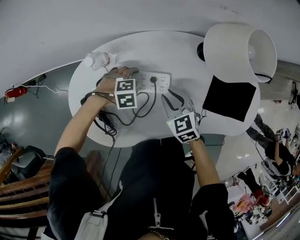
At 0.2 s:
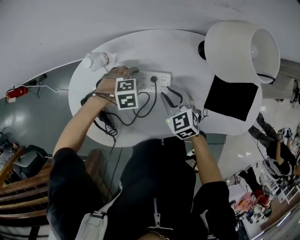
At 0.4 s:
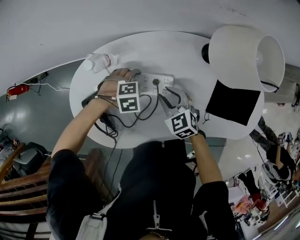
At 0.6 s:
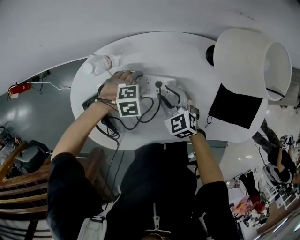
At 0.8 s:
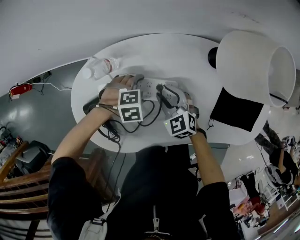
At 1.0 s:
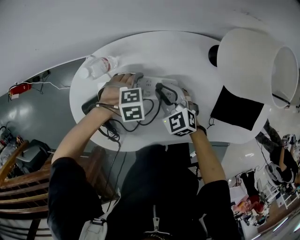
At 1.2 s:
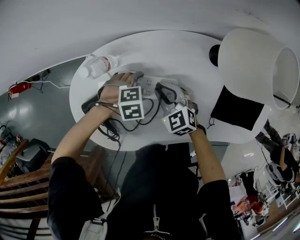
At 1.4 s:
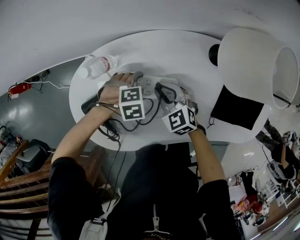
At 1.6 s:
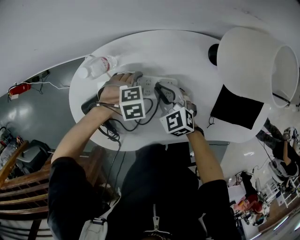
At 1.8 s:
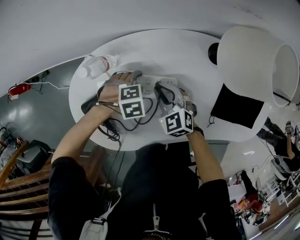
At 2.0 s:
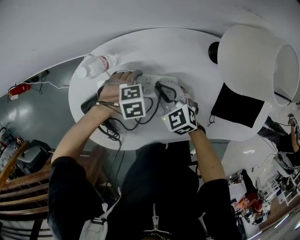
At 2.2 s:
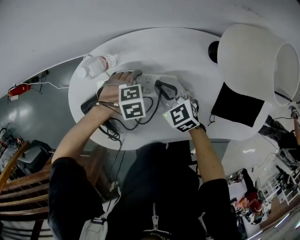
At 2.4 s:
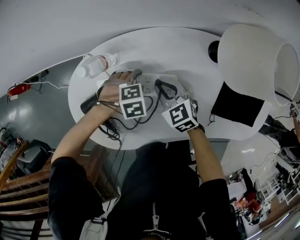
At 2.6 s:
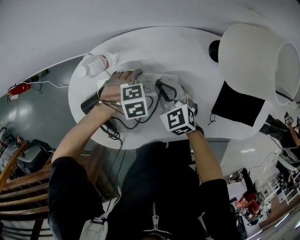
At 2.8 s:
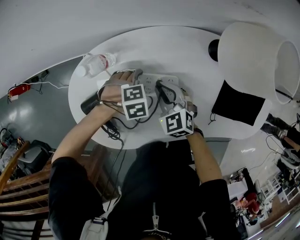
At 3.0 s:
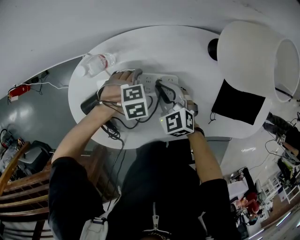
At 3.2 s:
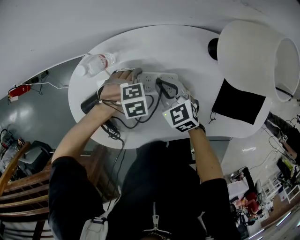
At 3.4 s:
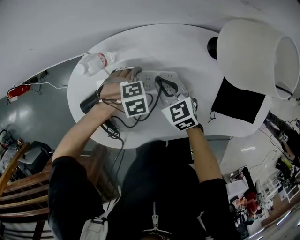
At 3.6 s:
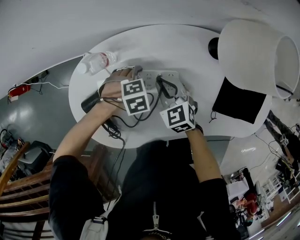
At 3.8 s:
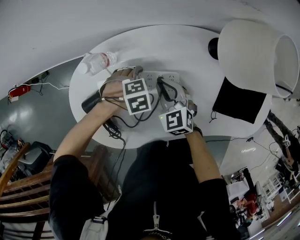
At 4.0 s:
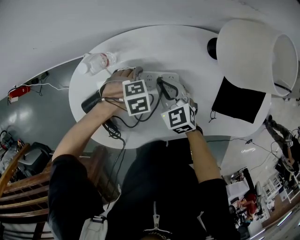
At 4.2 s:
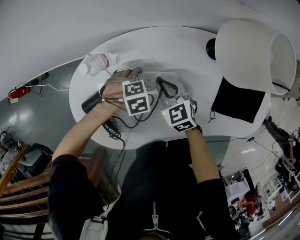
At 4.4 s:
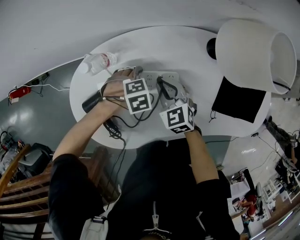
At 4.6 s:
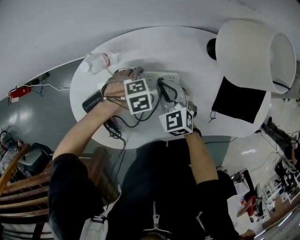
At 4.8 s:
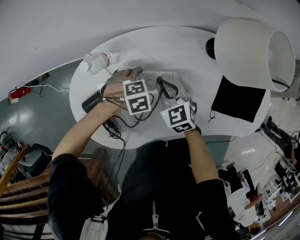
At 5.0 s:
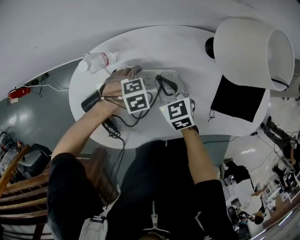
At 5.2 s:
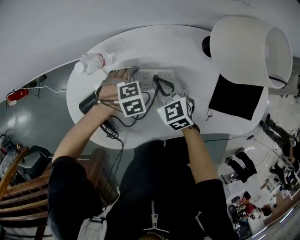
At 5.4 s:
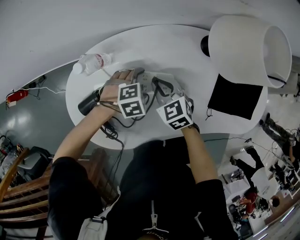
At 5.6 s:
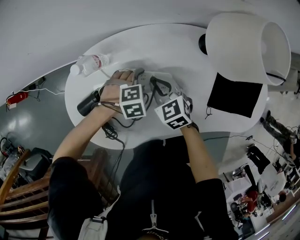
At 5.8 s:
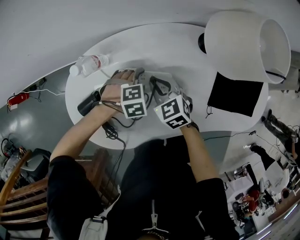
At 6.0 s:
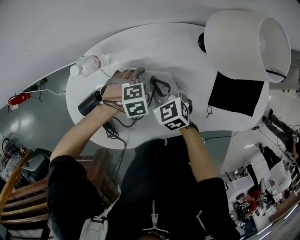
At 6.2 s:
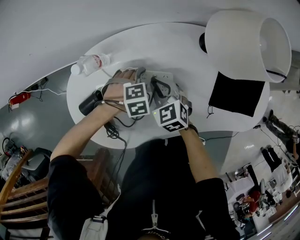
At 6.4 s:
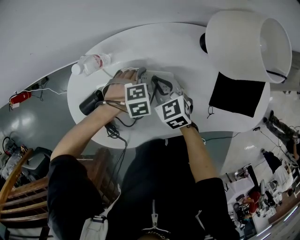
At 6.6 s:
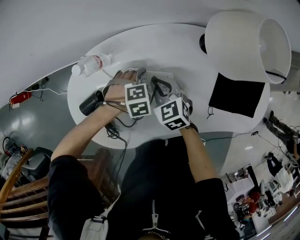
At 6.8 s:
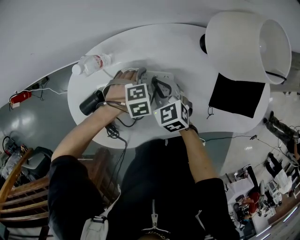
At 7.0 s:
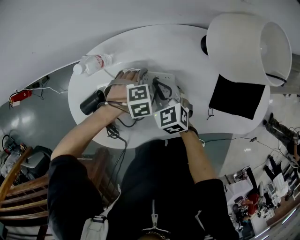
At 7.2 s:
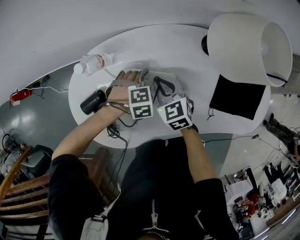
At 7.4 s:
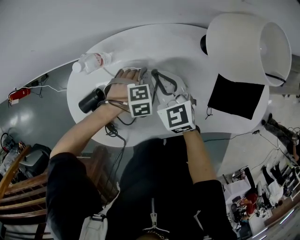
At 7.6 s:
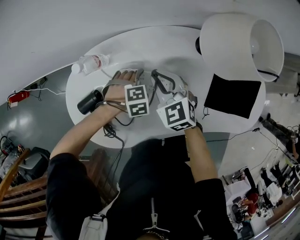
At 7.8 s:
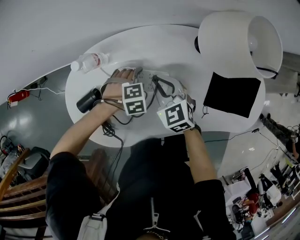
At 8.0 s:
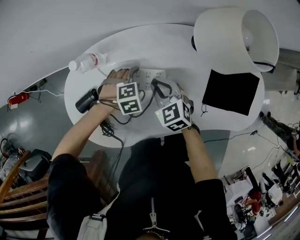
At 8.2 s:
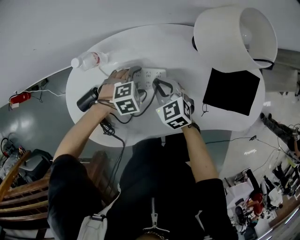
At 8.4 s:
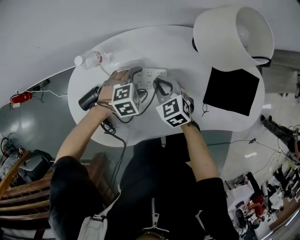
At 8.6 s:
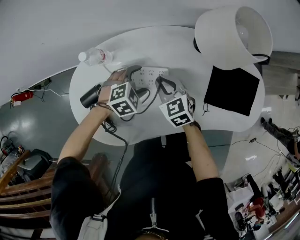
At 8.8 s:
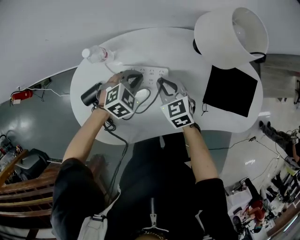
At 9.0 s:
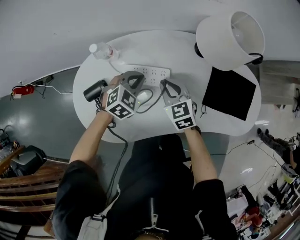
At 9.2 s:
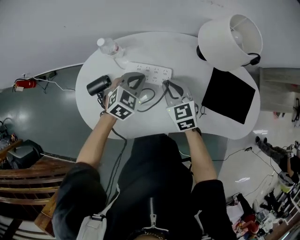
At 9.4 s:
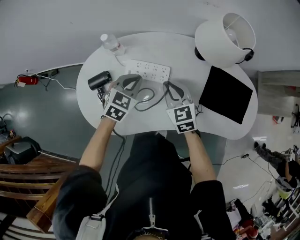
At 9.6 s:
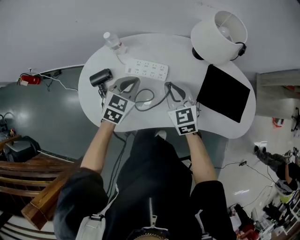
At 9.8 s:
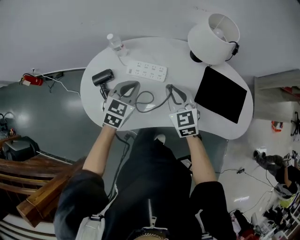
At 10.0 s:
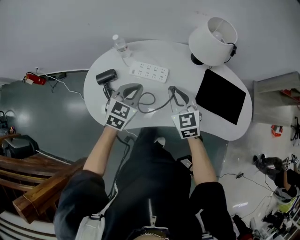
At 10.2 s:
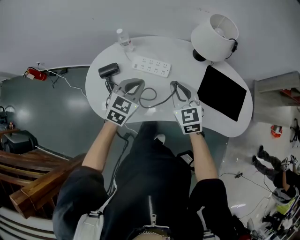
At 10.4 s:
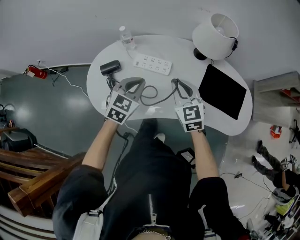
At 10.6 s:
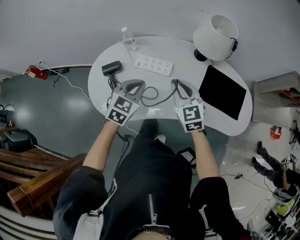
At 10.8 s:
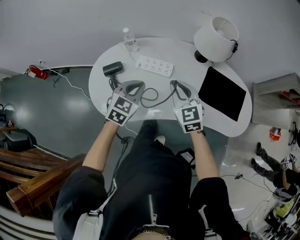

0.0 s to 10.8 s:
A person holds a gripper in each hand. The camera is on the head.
0.0 to 1.6 s: The right gripper ends up roughly 10 cm from where it was.
1.6 to 6.2 s: The grippers stay close to where they were, moving slightly.
7.8 to 9.2 s: The left gripper shifts about 15 cm upward, angles its fingers upward, by about 30 degrees, and closes its fingers. Meanwhile the right gripper changes place by some 5 cm.
9.2 to 10.8 s: The right gripper is displaced upward and backward by about 20 cm. The left gripper is displaced backward and upward by approximately 20 cm.

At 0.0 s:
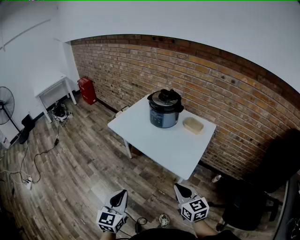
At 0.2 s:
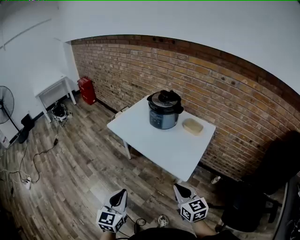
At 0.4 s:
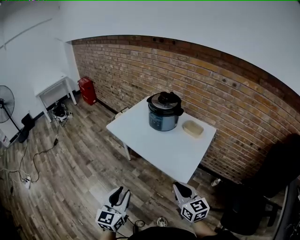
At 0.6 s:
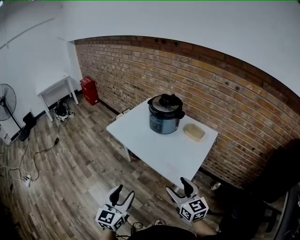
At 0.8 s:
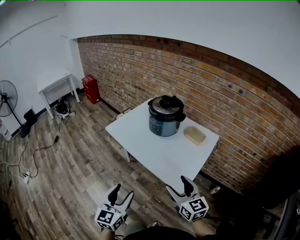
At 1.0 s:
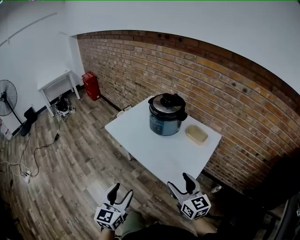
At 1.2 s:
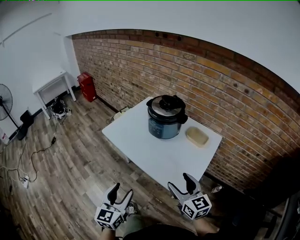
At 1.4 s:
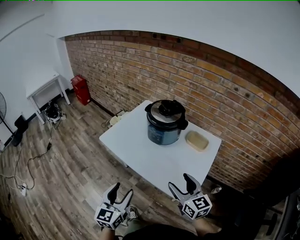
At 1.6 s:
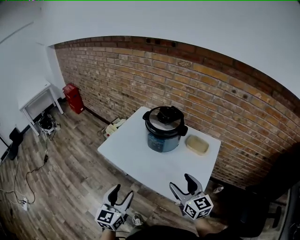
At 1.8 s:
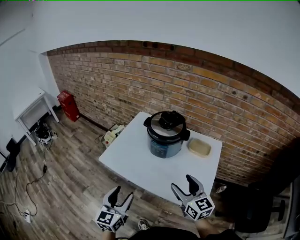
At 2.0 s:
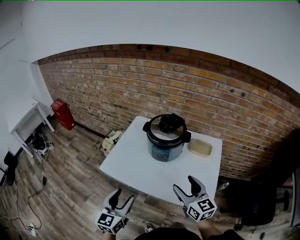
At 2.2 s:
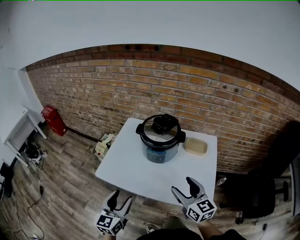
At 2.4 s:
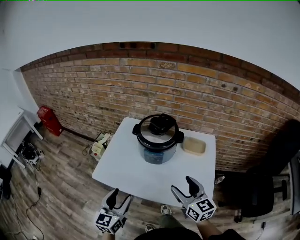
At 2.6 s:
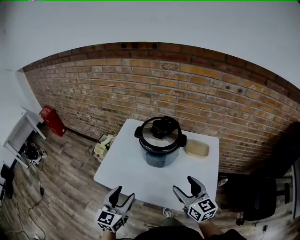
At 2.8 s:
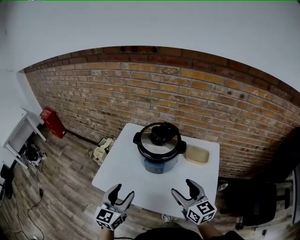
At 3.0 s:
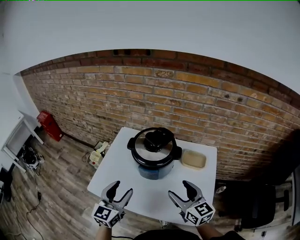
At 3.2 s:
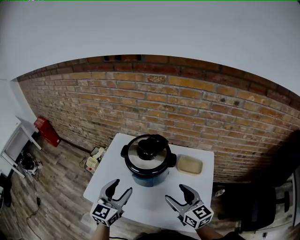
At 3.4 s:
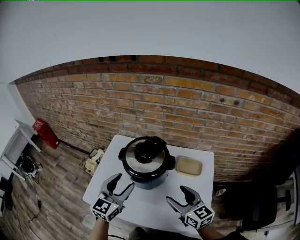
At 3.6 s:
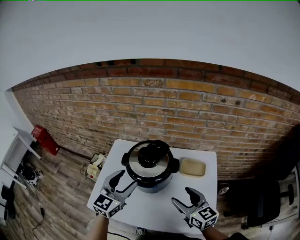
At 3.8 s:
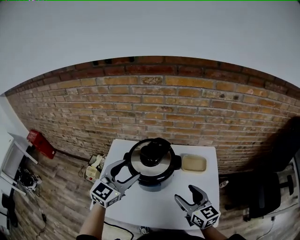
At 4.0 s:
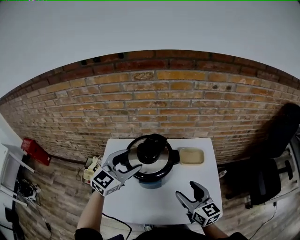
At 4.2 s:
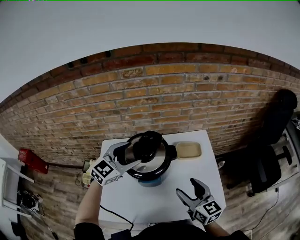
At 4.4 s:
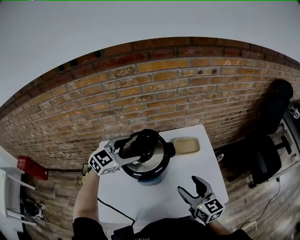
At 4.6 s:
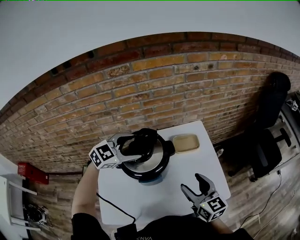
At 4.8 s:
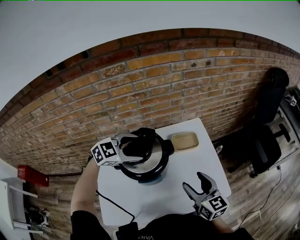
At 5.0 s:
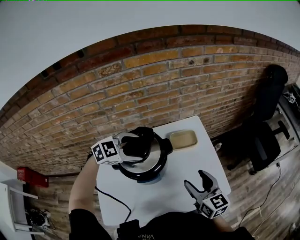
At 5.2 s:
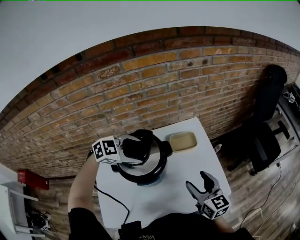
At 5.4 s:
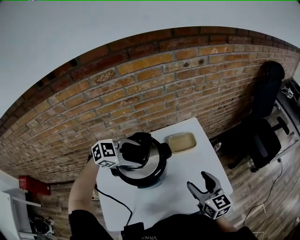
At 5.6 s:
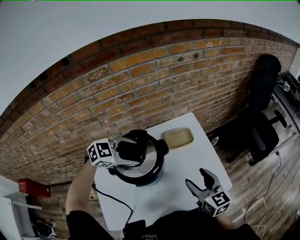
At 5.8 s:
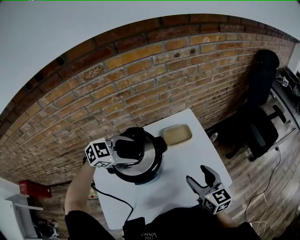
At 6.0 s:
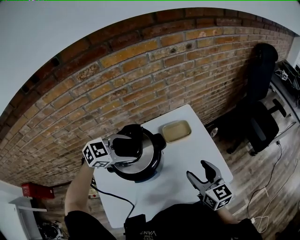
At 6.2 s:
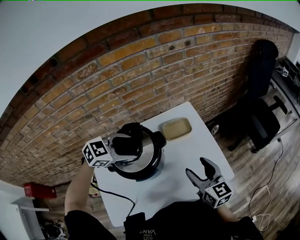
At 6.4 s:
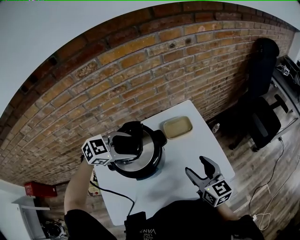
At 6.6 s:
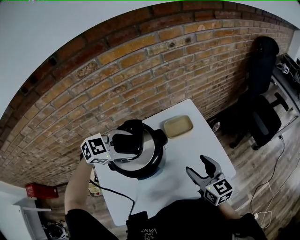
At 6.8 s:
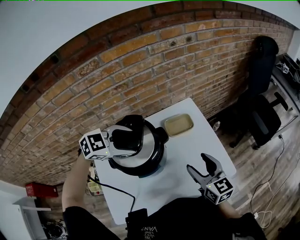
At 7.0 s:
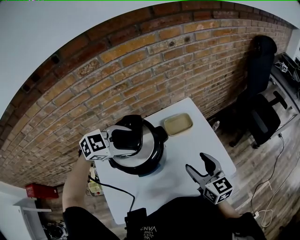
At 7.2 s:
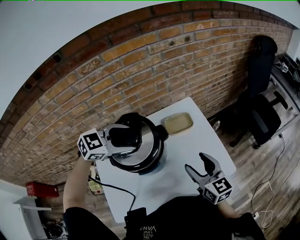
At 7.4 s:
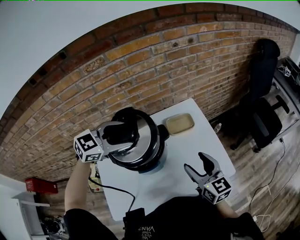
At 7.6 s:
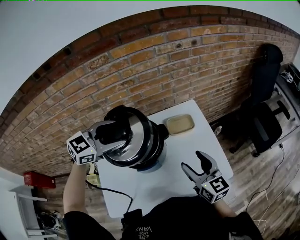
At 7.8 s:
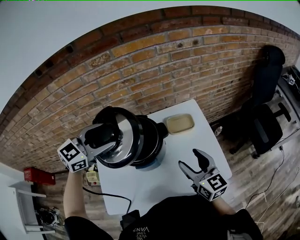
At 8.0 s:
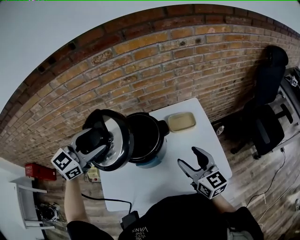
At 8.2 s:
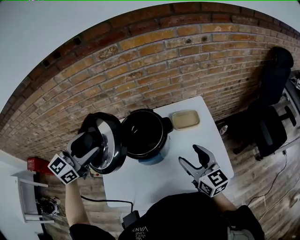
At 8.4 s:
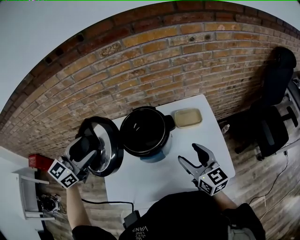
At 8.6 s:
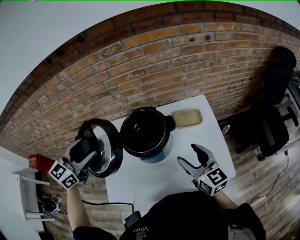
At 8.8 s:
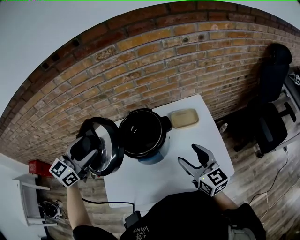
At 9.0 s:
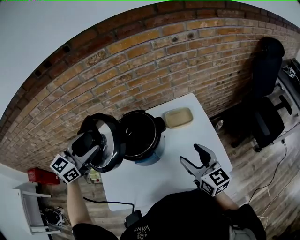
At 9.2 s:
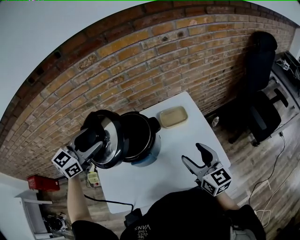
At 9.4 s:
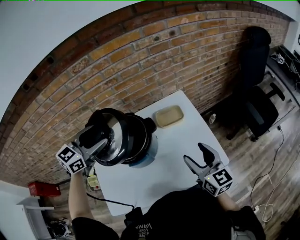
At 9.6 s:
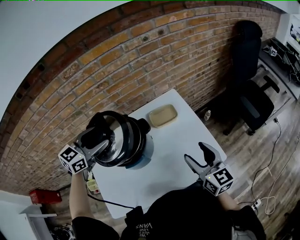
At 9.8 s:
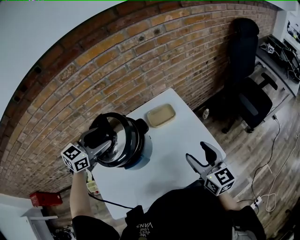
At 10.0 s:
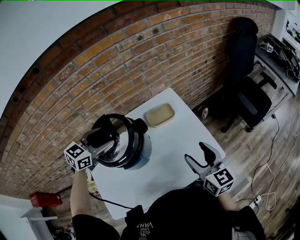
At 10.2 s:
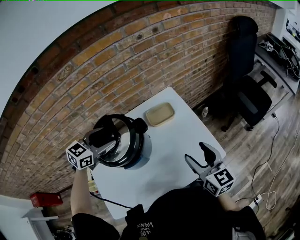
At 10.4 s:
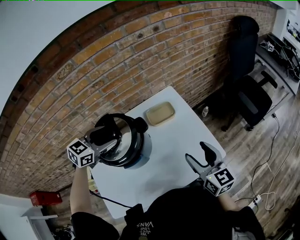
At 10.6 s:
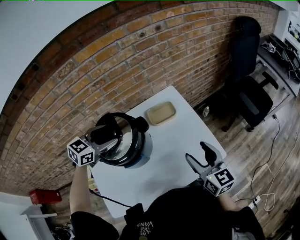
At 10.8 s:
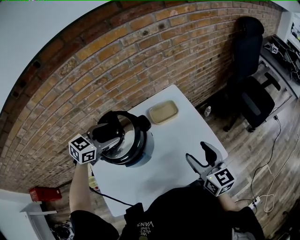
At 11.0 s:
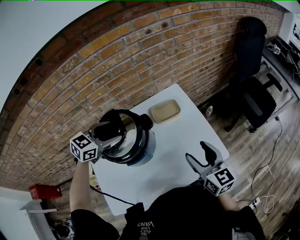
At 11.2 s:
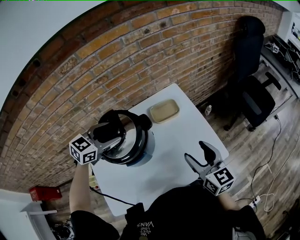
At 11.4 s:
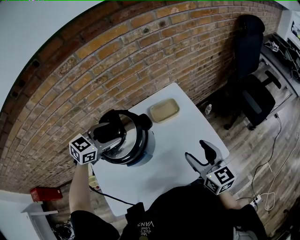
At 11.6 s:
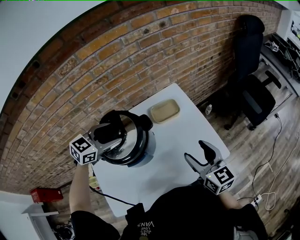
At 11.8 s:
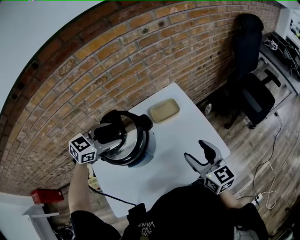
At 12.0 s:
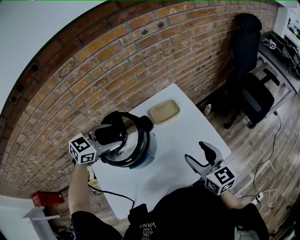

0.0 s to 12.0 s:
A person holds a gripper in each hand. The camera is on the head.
0.0 to 1.6 s: Both grippers move forward, some 25 cm. The right gripper opens up. Meanwhile the left gripper opens.
1.6 to 3.0 s: The left gripper moves forward, approximately 25 cm, and turns by roughly 20 degrees. Meanwhile the right gripper goes approximately 15 cm forward.
3.0 to 4.4 s: The left gripper moves roughly 25 cm, and changes its angle by approximately 60 degrees. Meanwhile the right gripper changes its angle by roughly 30 degrees.
4.4 to 6.0 s: The left gripper shifts by approximately 5 cm, and swivels about 30 degrees, while the right gripper shifts by some 5 cm.
6.0 to 7.6 s: The left gripper shifts some 10 cm upward, and changes its angle by approximately 20 degrees.
7.6 to 9.0 s: The left gripper travels to the left and backward by some 10 cm, and swivels about 30 degrees.
9.0 to 10.4 s: The left gripper travels downward, to the right and forward by roughly 20 cm, and swivels about 30 degrees, while the right gripper shifts about 10 cm to the right.
10.4 to 12.0 s: There are only small adjustments of the grippers.

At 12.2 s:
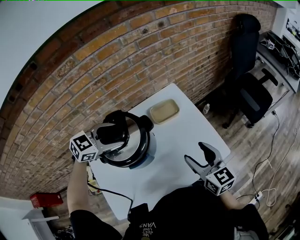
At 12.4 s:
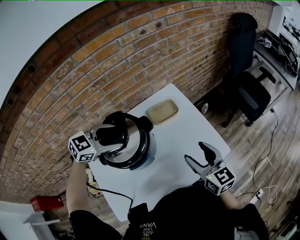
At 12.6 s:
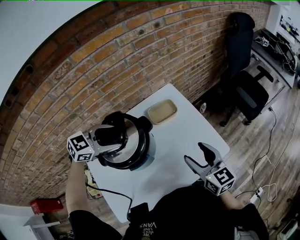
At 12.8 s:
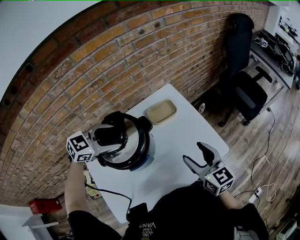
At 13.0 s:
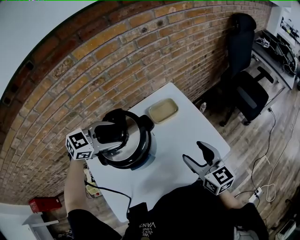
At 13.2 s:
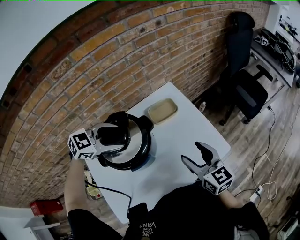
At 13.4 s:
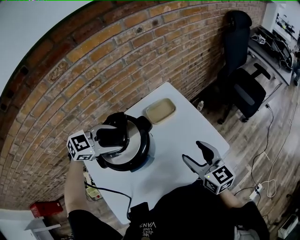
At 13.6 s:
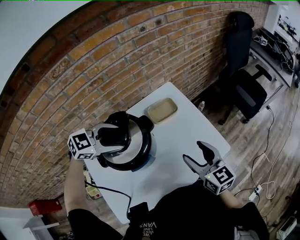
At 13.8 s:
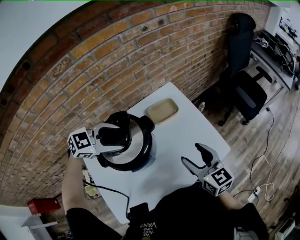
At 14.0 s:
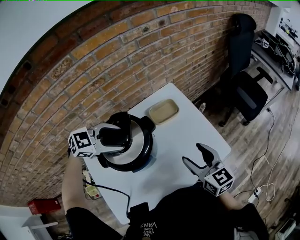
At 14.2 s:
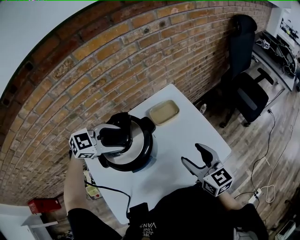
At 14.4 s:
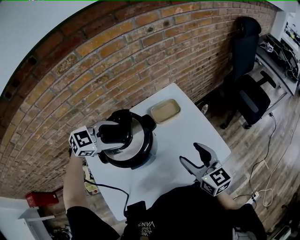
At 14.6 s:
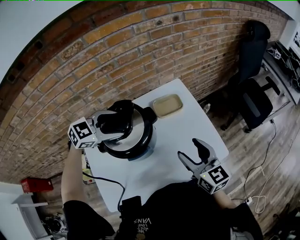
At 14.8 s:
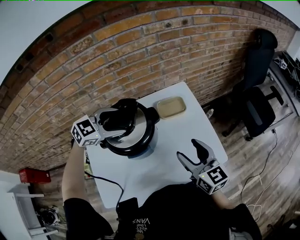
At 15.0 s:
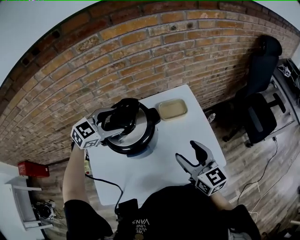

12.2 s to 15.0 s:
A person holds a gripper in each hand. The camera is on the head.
12.2 to 13.6 s: The grippers make only small movements.
13.6 to 15.0 s: The left gripper rotates about 30 degrees.
